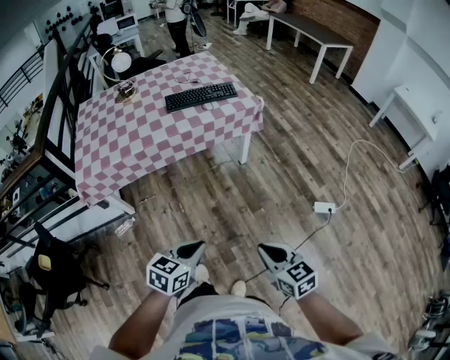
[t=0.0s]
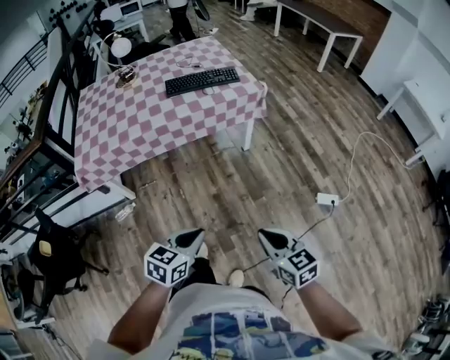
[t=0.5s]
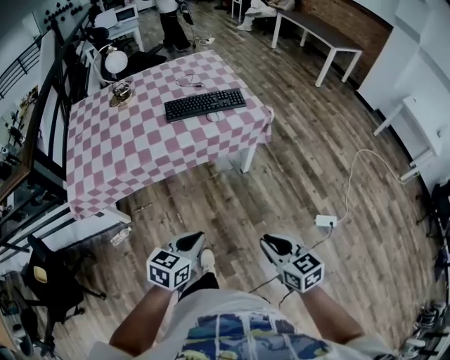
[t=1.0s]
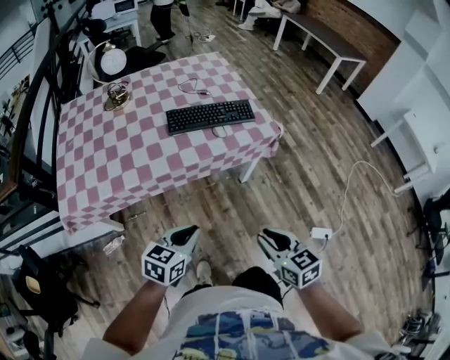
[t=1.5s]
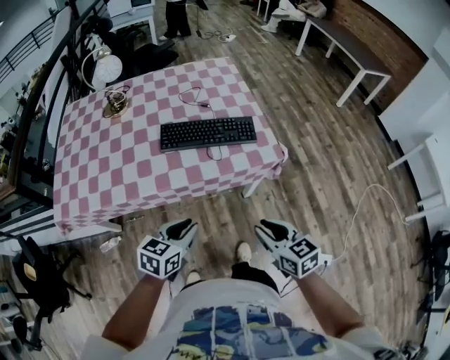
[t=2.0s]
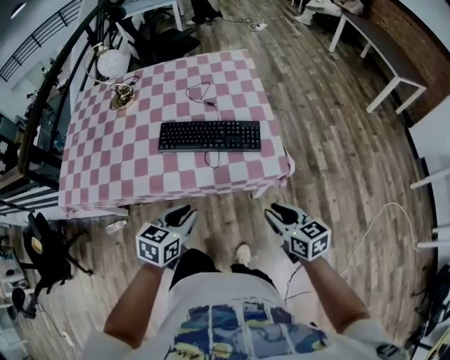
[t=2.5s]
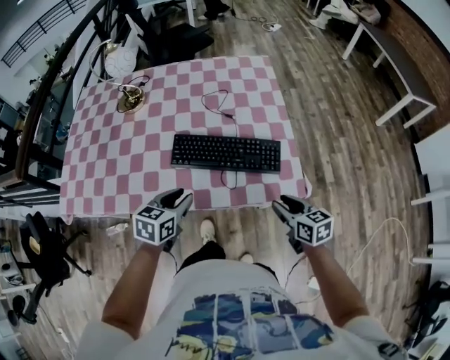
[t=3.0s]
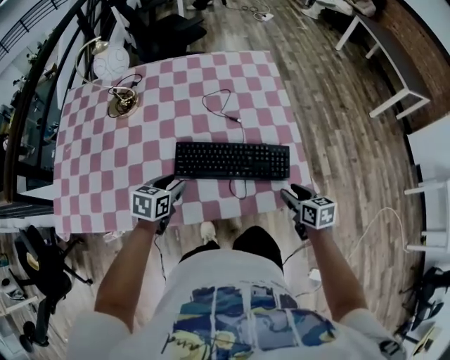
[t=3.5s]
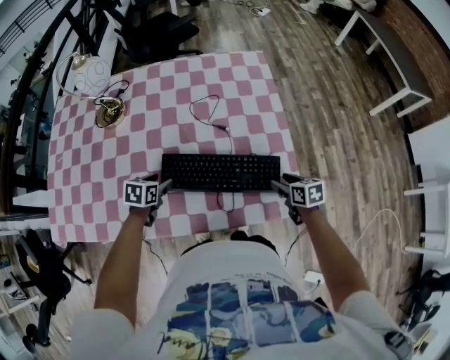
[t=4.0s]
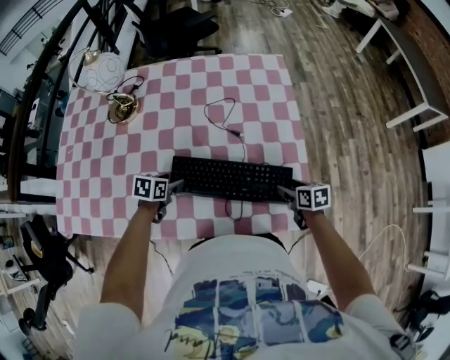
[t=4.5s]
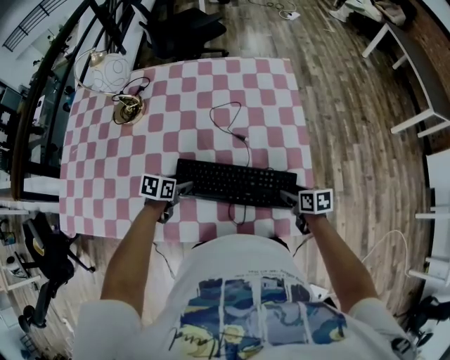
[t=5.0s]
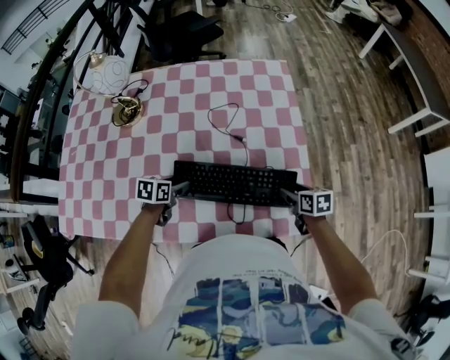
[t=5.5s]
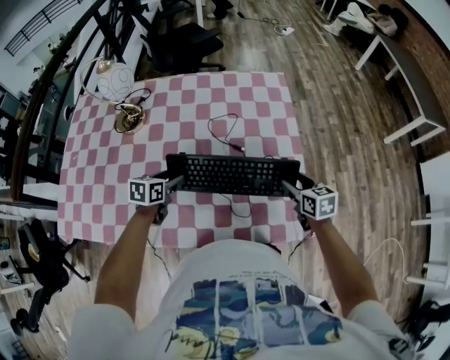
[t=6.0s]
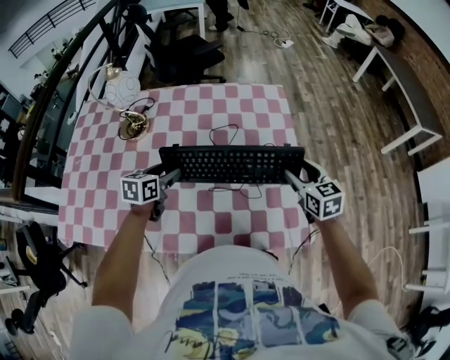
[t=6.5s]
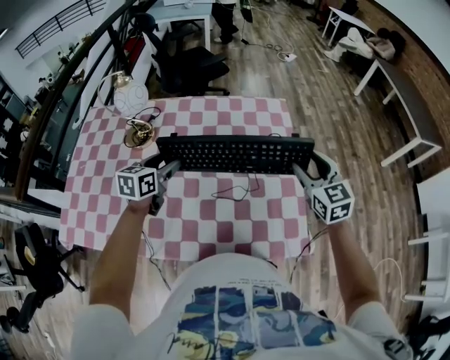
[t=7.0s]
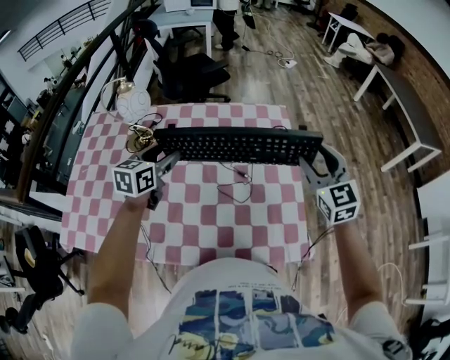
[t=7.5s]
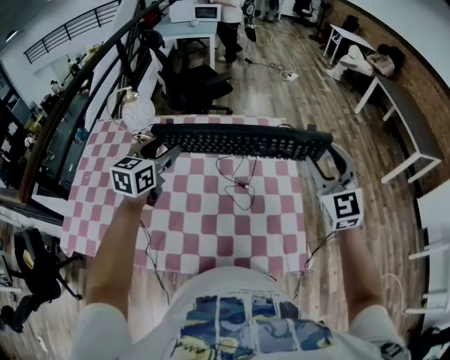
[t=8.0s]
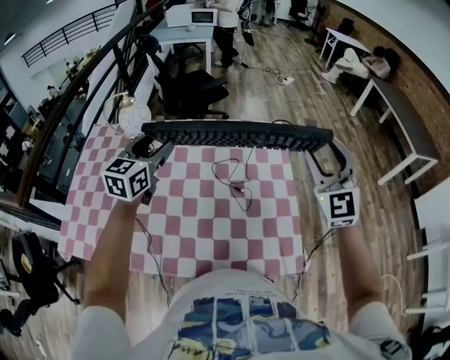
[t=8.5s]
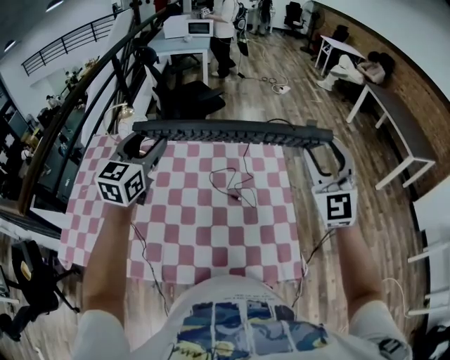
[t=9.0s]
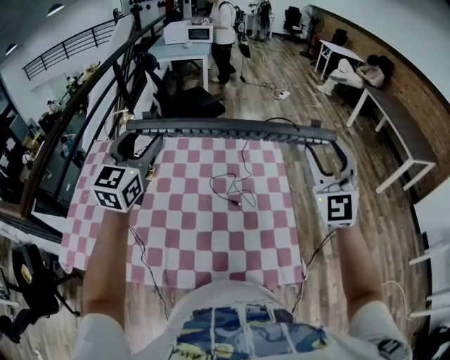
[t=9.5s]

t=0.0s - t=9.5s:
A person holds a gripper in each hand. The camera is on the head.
t=0.0s - t=2.0s: Both grippers are carried forward, some 50 cm.
t=2.0s - t=4.0s: The two grippers travel together, forward, roughly 50 cm. The right gripper rotates some 20 degrees, and opens its fingers; the left gripper swivels roughly 30 degrees, and opens up.
t=4.0s - t=5.5s: There are only small adjustments of the grippers.
t=5.5s - t=7.5s: Both grippers travel together upward, approximately 30 cm. The right gripper points its fingers roughly 40 degrees further upward. Meanwhile the left gripper turns by roughly 40 degrees.
t=7.5s - t=9.5s: The two grippers go approximately 20 cm upward. The left gripper swivels roughly 40 degrees; the right gripper swivels approximately 30 degrees.

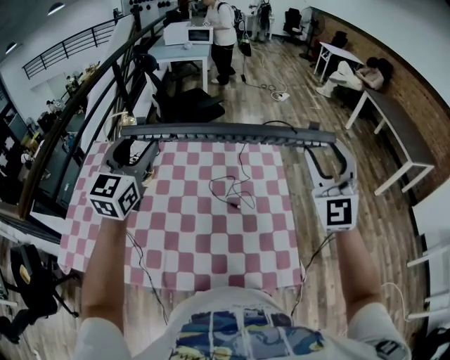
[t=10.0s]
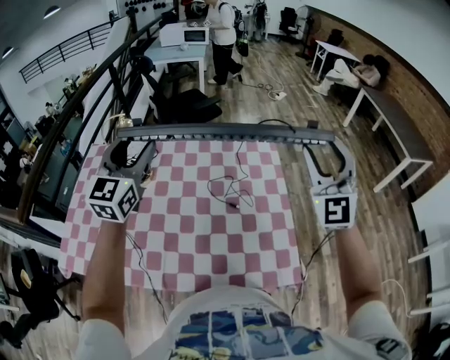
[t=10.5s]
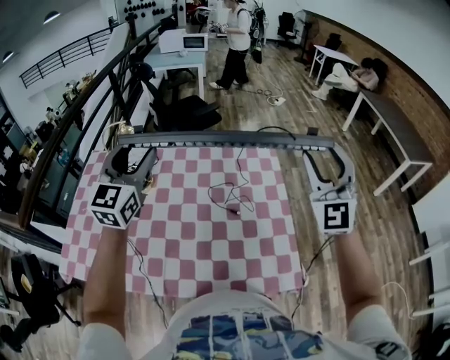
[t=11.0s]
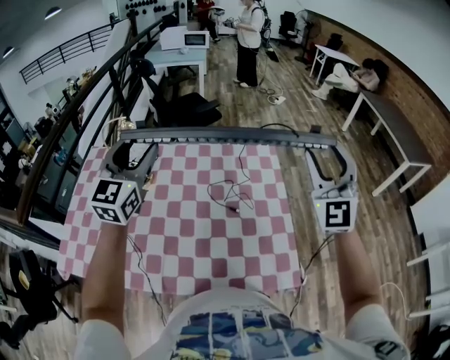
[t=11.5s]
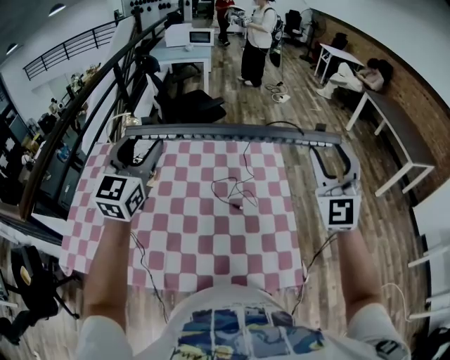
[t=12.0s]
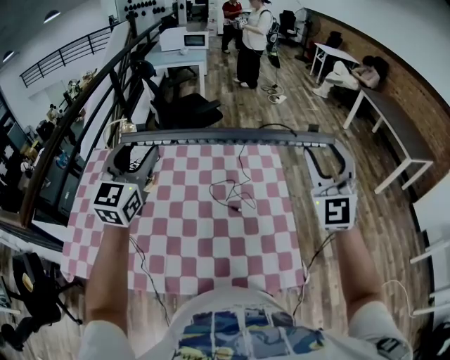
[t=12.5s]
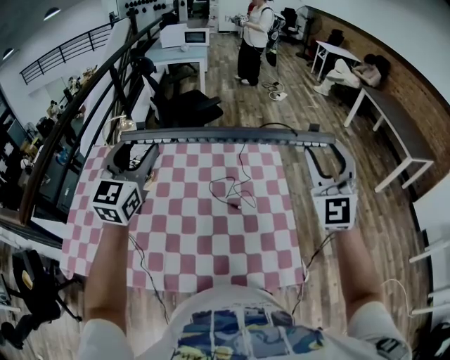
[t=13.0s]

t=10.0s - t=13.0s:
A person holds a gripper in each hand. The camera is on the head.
t=10.0s - t=13.0s: Neither gripper changes place.

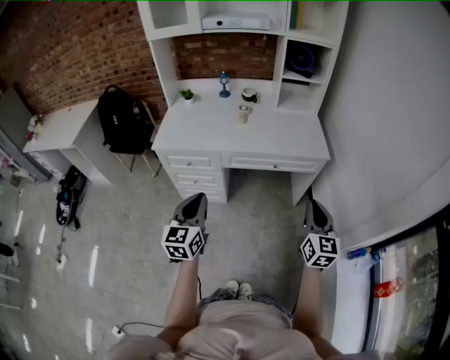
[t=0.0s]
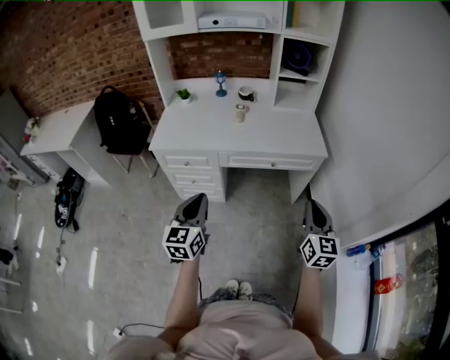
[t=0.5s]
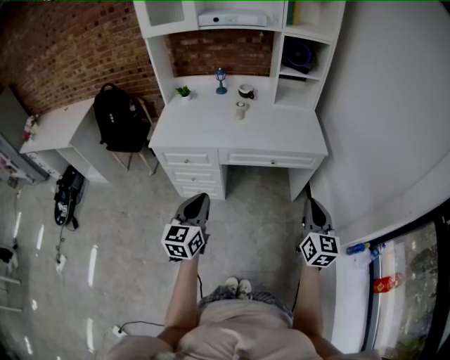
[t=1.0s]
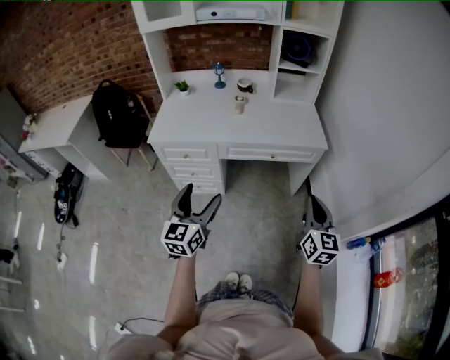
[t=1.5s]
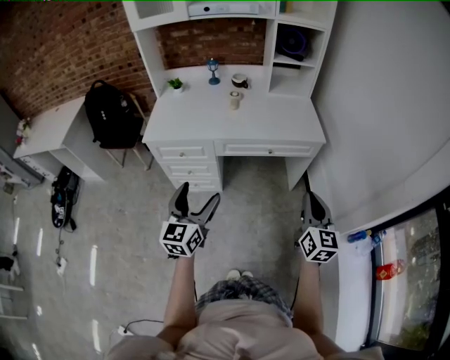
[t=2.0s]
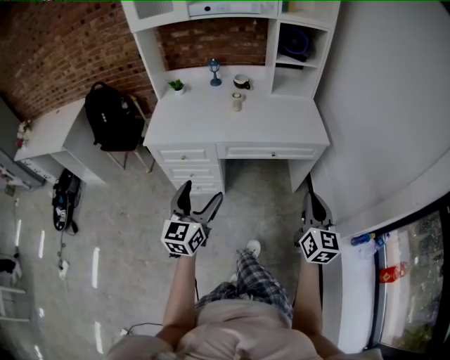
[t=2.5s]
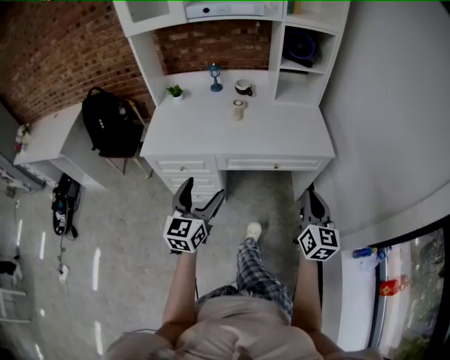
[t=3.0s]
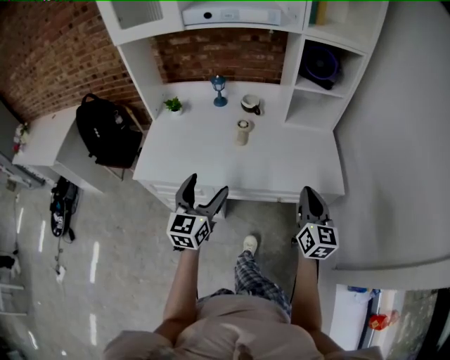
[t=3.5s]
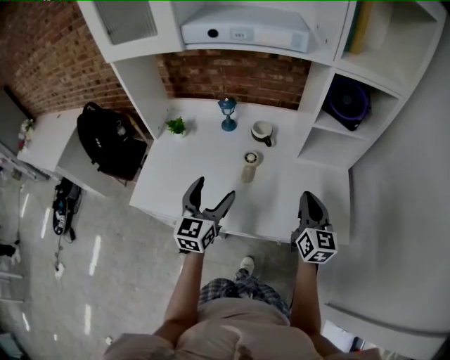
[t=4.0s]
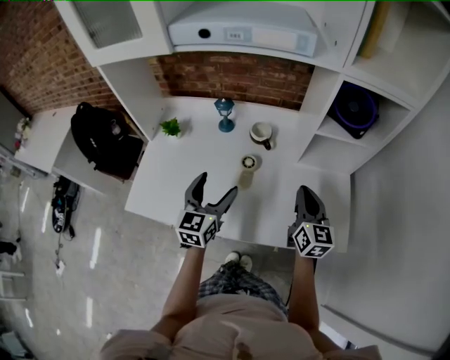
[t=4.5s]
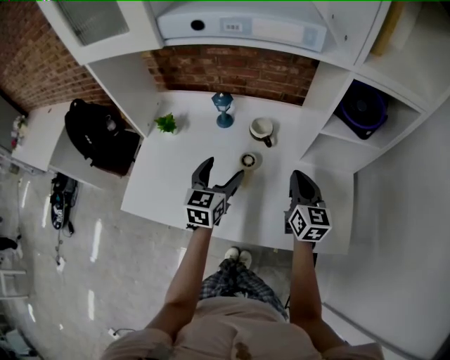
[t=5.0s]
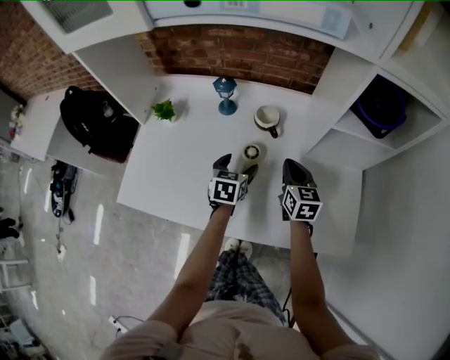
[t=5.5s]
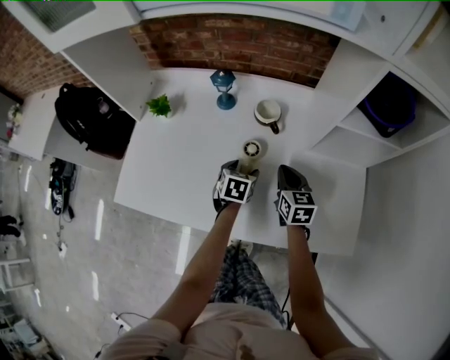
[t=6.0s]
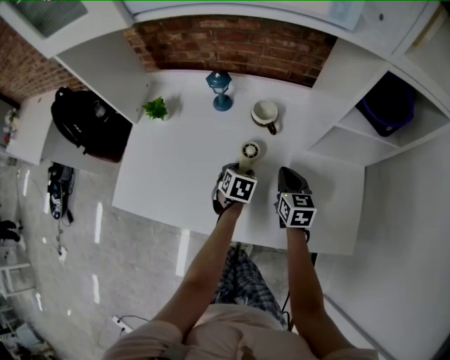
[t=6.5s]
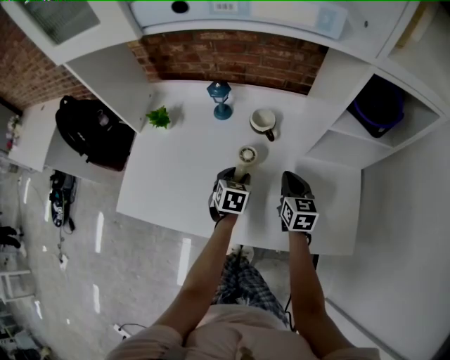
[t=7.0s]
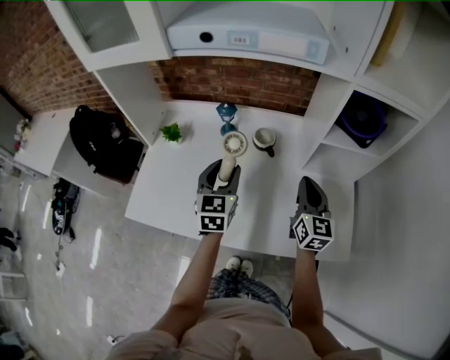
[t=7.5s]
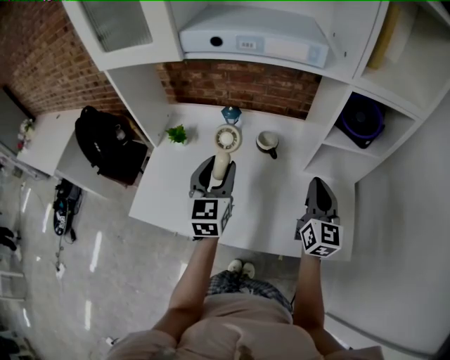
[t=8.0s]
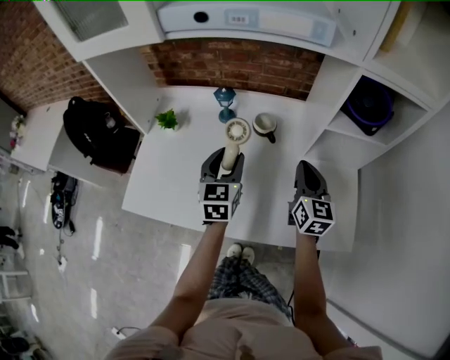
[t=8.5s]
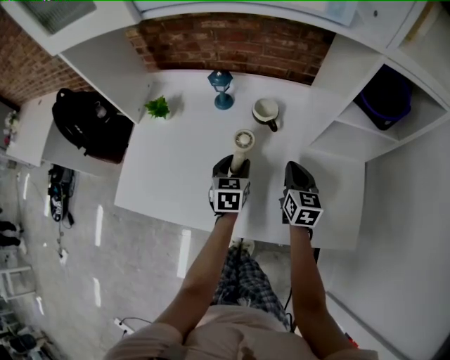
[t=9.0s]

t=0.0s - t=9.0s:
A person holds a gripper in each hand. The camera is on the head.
t=0.0s - t=2.0s: The left gripper opens up.
t=2.0s - t=4.5s: Both grippers are carried forward, some 60 cm.
t=4.5s - t=7.0s: Both grippers move downward and forward, roughly 20 cm. The left gripper angles its fingers downward, by about 40 degrees, and closes up.
t=7.0s - t=9.0s: The left gripper goes upward and returns, approximately 25 cm each way; the right gripper moves roughly 20 cm upward and comes back.

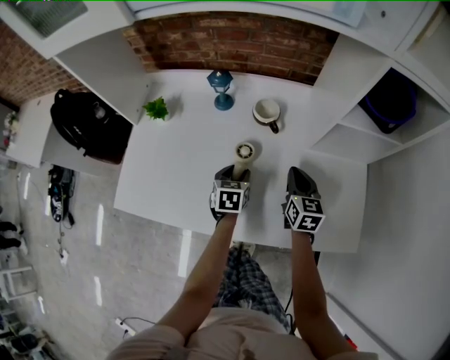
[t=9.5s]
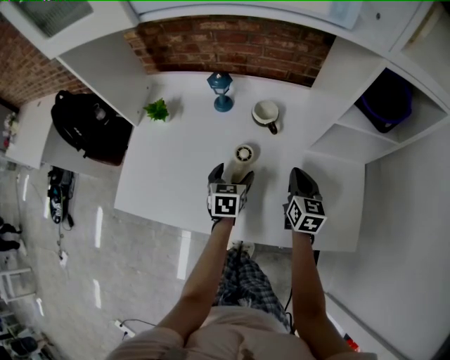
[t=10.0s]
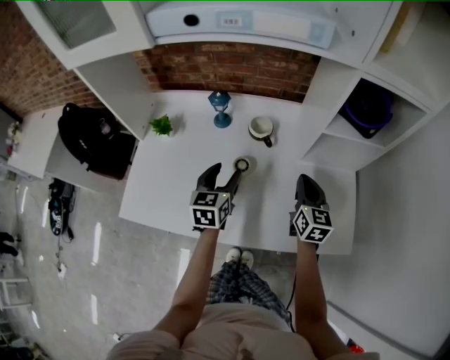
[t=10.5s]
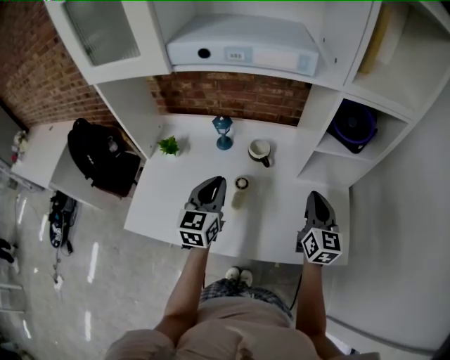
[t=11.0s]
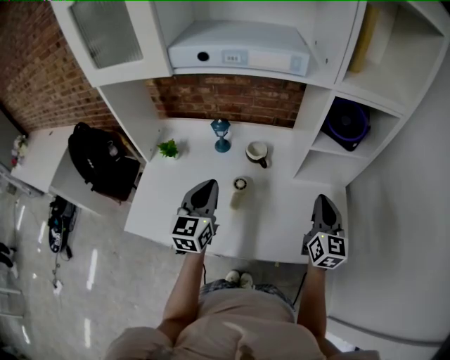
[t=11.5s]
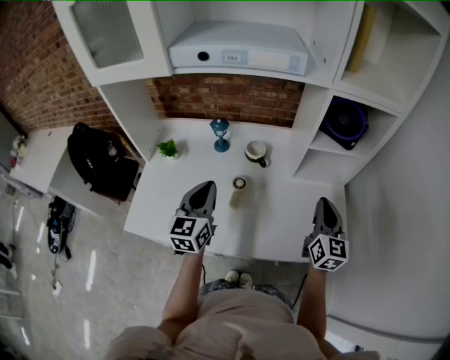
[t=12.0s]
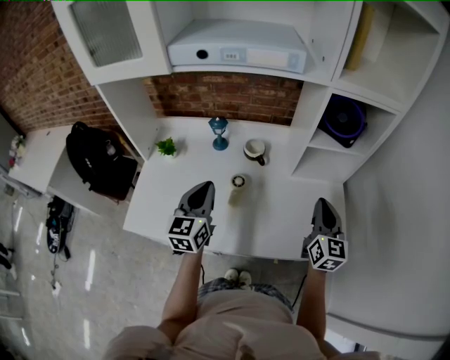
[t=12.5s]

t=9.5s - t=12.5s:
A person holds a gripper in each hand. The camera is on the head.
t=9.5s - t=11.0s: Both grippers move upward, about 20 cm. The right gripper changes its angle by about 20 degrees. Meanwhile the left gripper tilts its fingers some 40 degrees upward, and closes.
t=11.0s - t=12.5s: The right gripper moves approximately 5 cm.

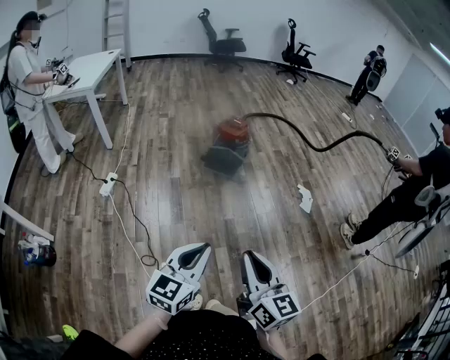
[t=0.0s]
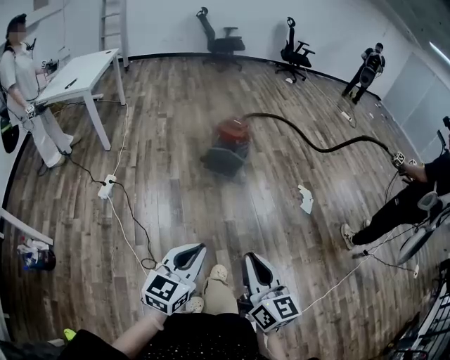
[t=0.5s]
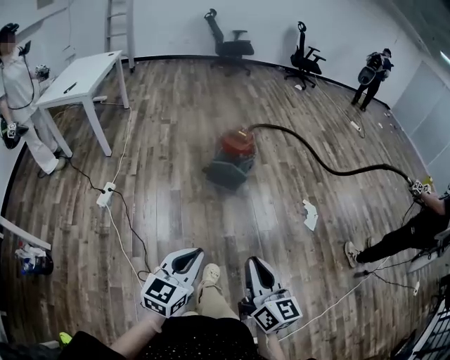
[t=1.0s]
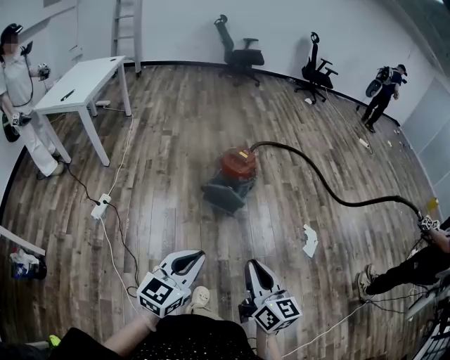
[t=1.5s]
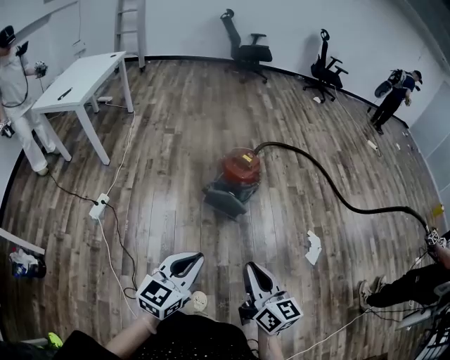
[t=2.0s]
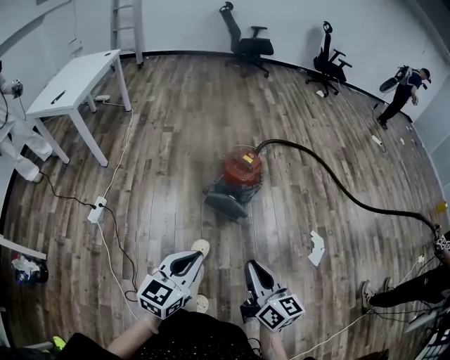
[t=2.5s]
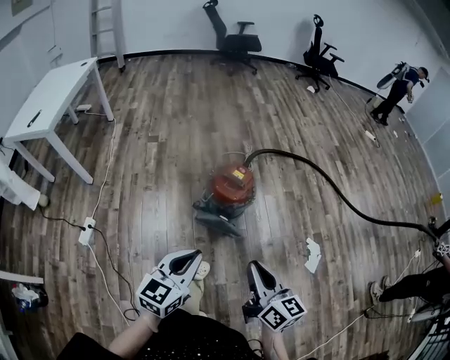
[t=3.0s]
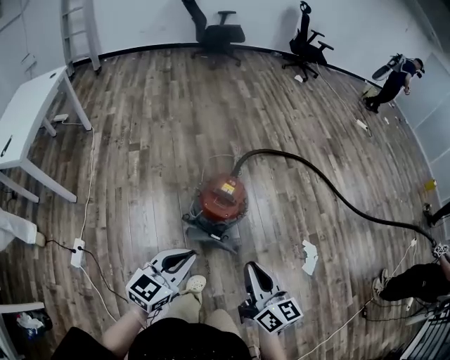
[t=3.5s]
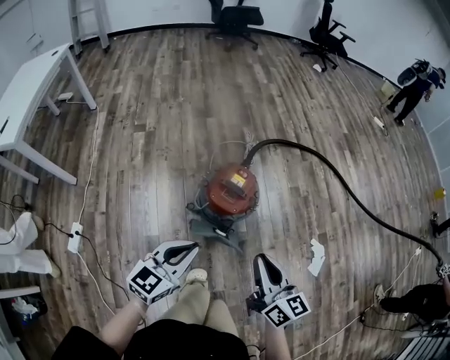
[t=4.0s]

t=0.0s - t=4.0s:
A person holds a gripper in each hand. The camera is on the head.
t=0.0s - t=2.0s: The two grippers go some 35 cm forward.
t=2.0s - t=4.0s: Both grippers travel together forward, about 40 cm.
